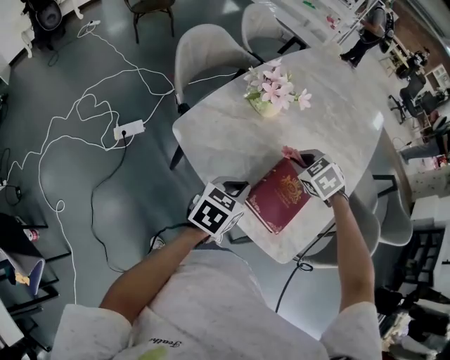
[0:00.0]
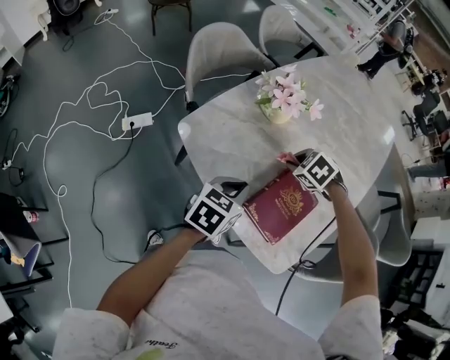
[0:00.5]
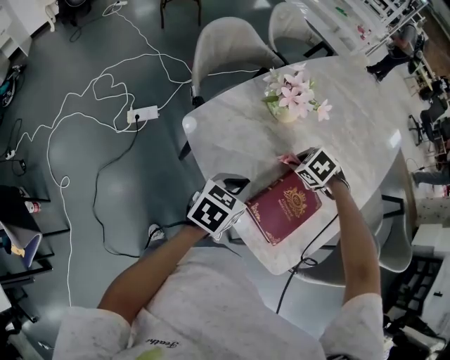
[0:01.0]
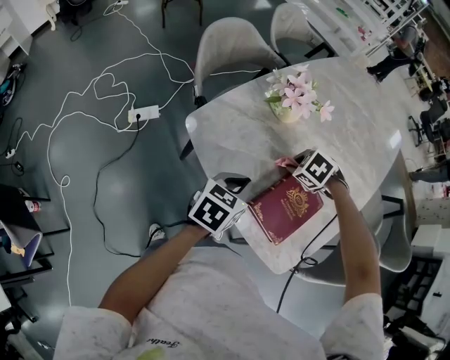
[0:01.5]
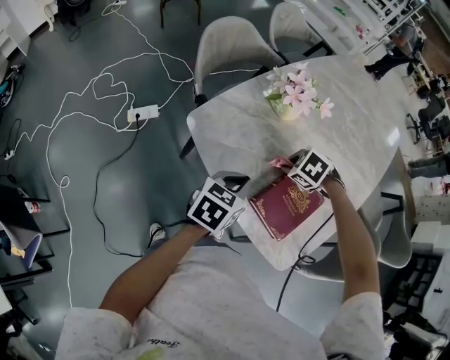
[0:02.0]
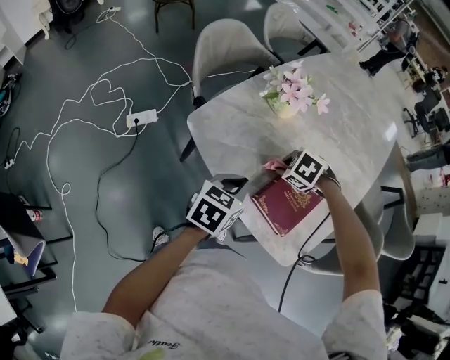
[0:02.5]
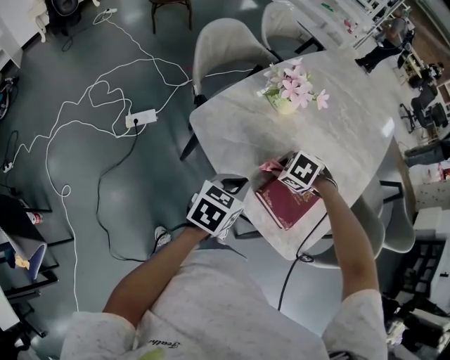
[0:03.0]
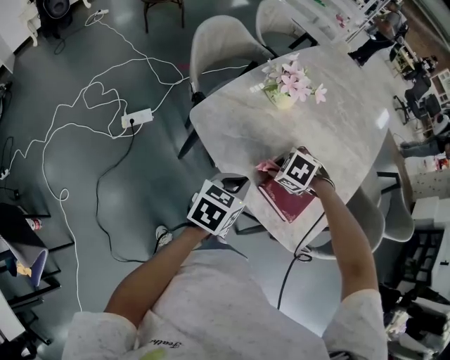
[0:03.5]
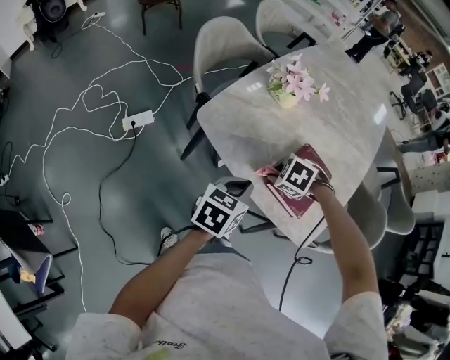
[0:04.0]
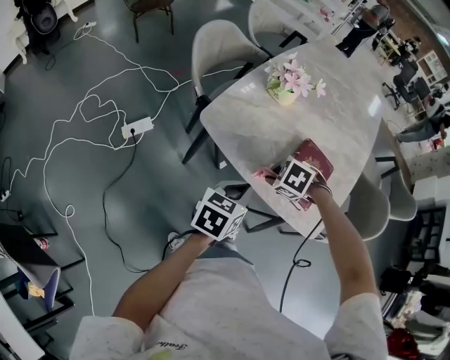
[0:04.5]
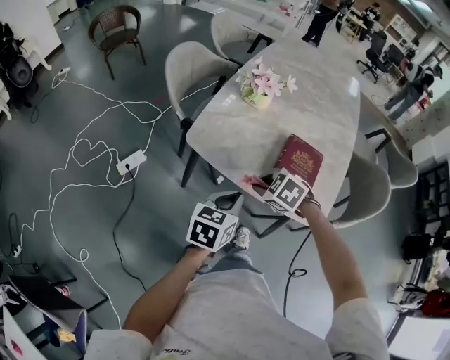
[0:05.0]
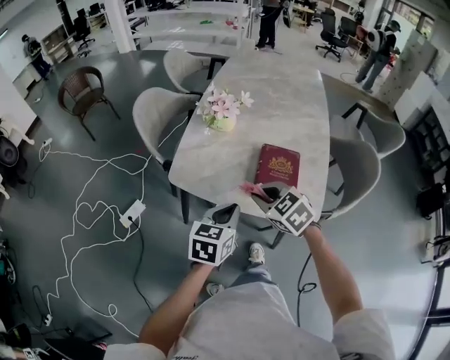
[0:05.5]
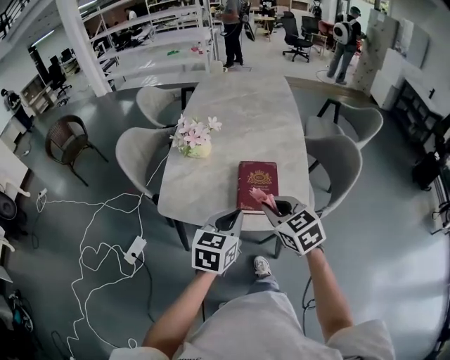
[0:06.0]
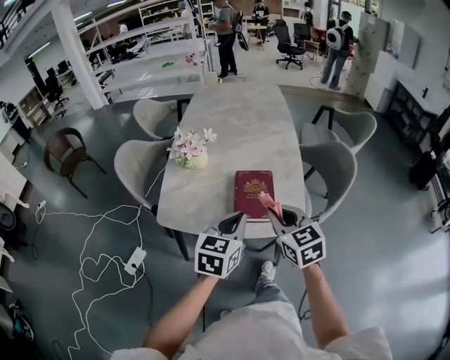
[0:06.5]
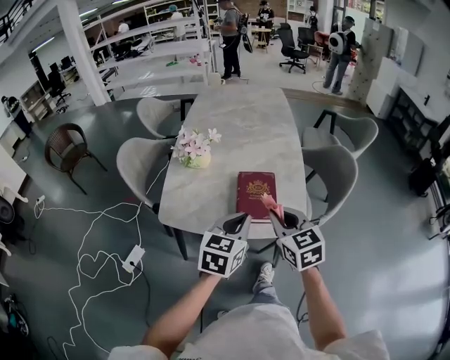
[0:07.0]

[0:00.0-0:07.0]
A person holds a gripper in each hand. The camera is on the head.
0.0 to 2.0 s: The right gripper goes about 10 cm downward, and swivels roughly 30 degrees.
2.0 to 3.5 s: The left gripper ends up approximately 5 cm from where it was, while the right gripper ends up some 10 cm from where it was.
3.5 to 5.0 s: The right gripper shifts by about 10 cm, and swivels about 30 degrees; the left gripper shifts by approximately 10 cm.
5.0 to 7.0 s: Both grippers travel together upward, roughly 15 cm. The left gripper changes its angle by approximately 30 degrees, while the right gripper angles its fingers upward, by about 40 degrees.

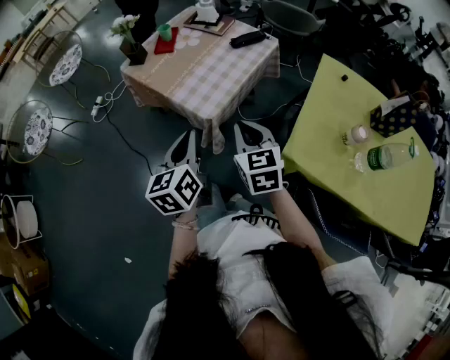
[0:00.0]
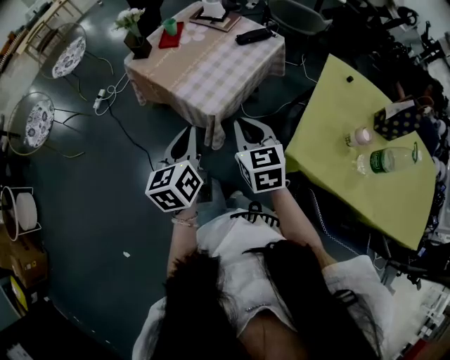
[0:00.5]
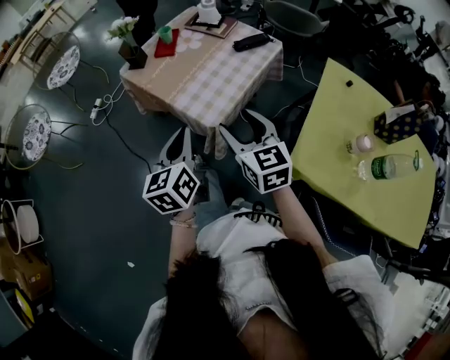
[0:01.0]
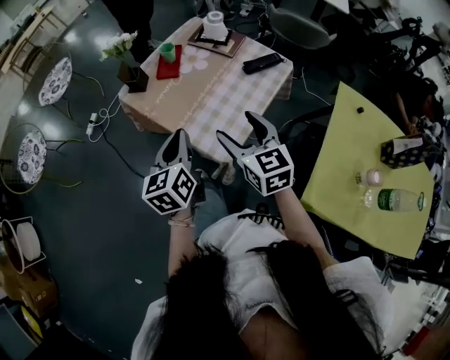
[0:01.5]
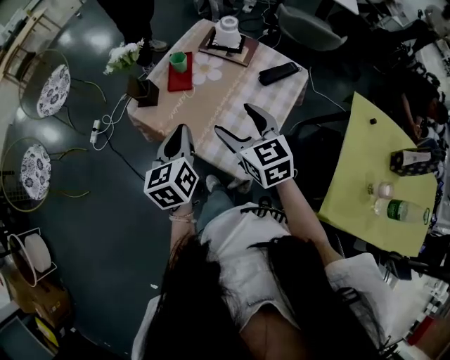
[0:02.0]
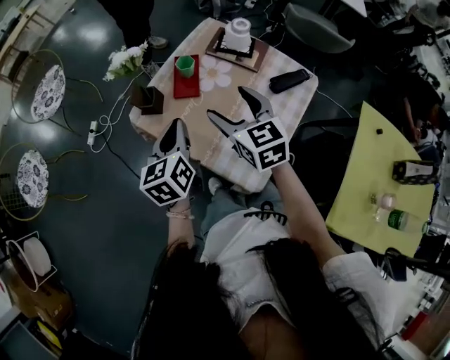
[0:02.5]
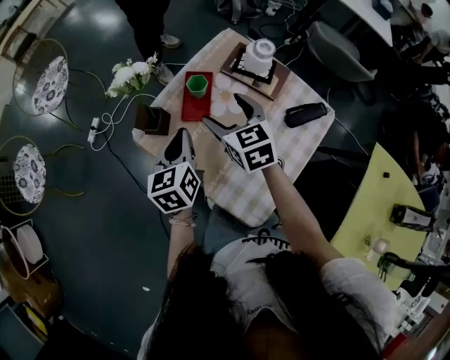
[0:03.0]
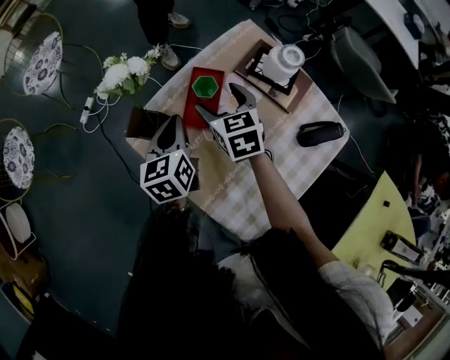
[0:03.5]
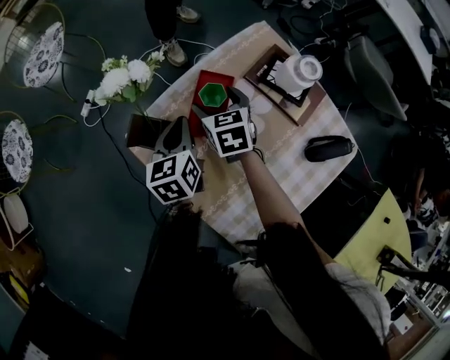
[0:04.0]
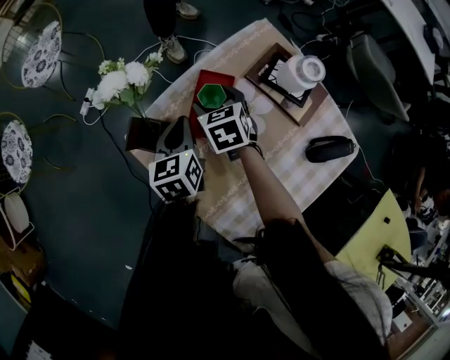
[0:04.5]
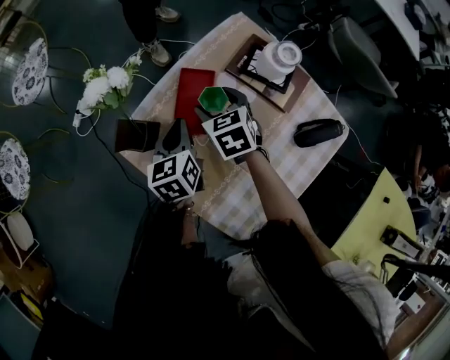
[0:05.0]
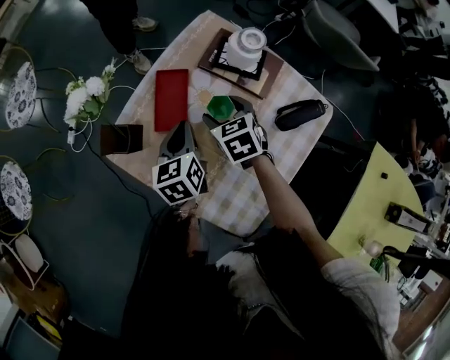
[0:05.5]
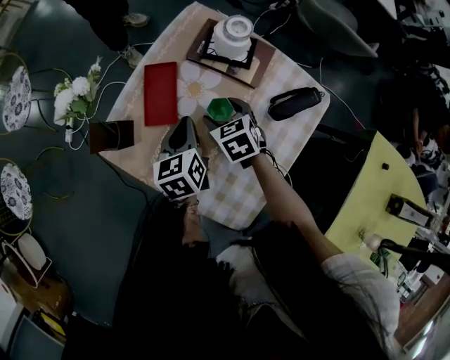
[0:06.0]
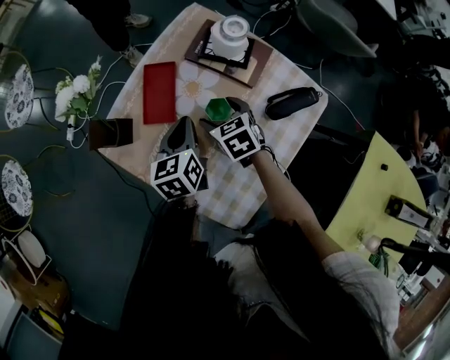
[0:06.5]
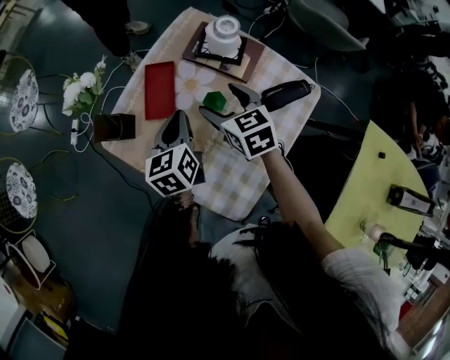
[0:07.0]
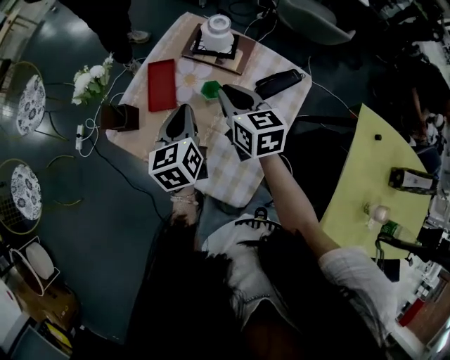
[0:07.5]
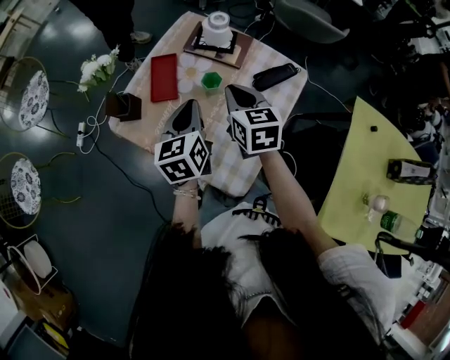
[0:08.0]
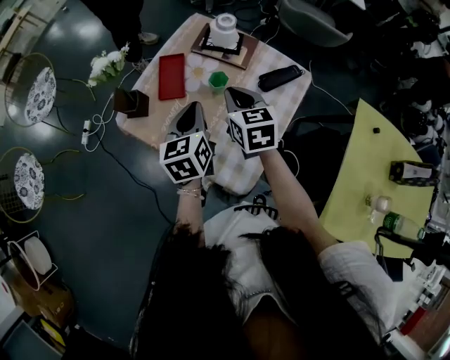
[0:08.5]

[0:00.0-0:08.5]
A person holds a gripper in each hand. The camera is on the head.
0.0 to 2.0 s: Both grippers move forward, roughly 30 cm. The right gripper opens up.
2.0 to 4.0 s: The two grippers go some 40 cm forward and downward. The right gripper swivels about 20 degrees.
4.0 to 6.5 s: Both grippers travel together to the right and backward, about 15 cm.
6.5 to 8.5 s: Both grippers move upward and backward, about 15 cm. The right gripper changes its angle by roughly 30 degrees, and closes its fingers.

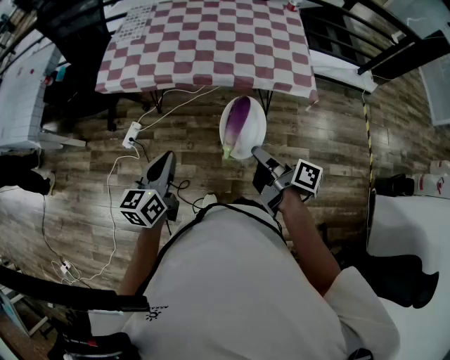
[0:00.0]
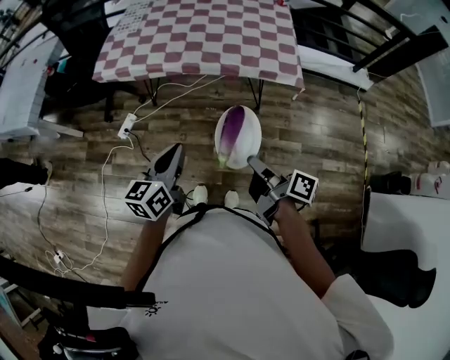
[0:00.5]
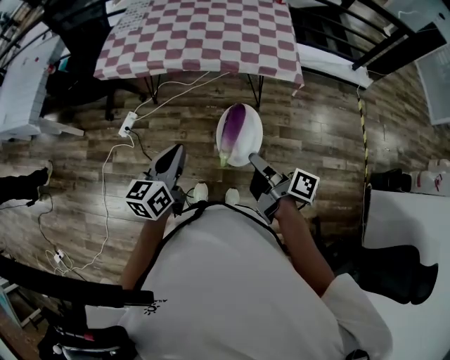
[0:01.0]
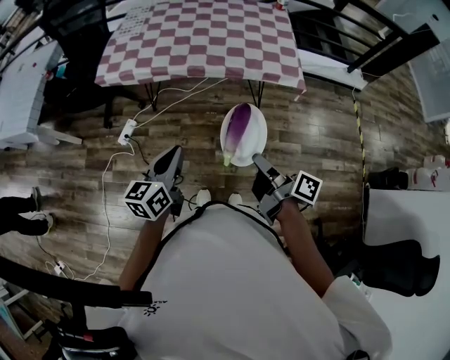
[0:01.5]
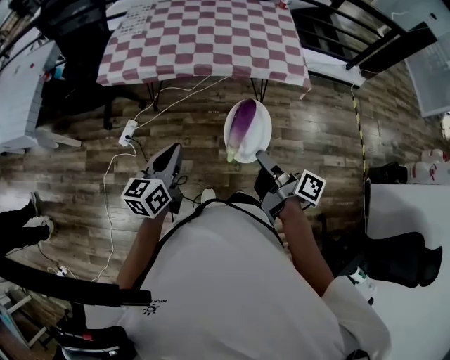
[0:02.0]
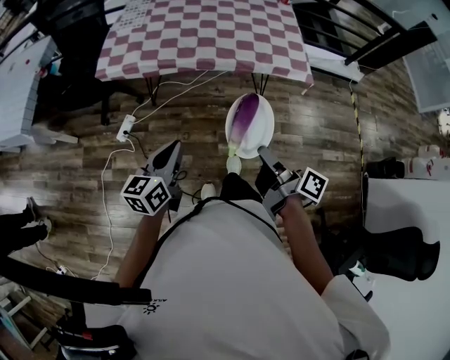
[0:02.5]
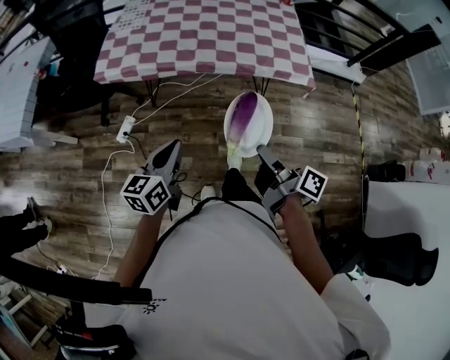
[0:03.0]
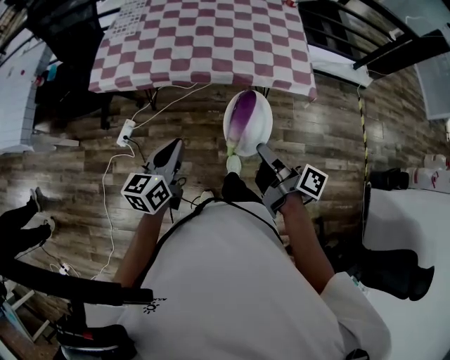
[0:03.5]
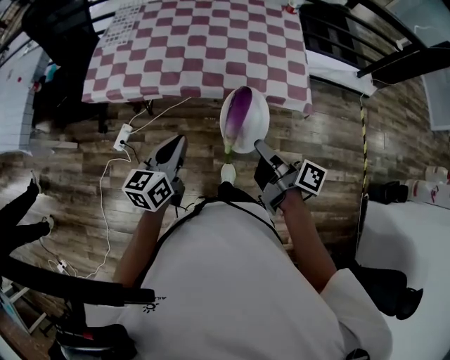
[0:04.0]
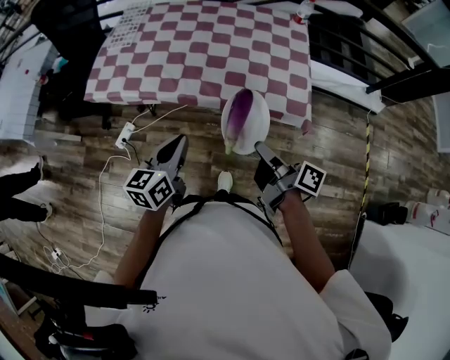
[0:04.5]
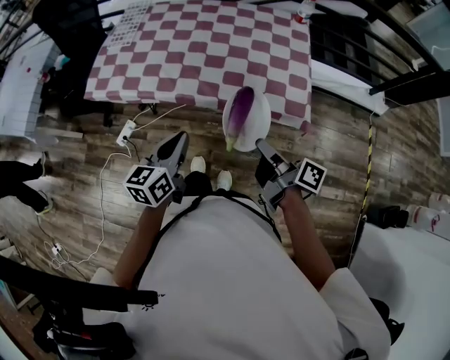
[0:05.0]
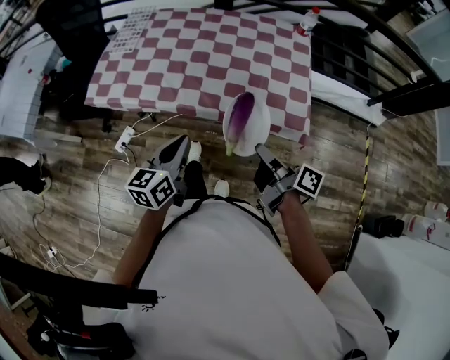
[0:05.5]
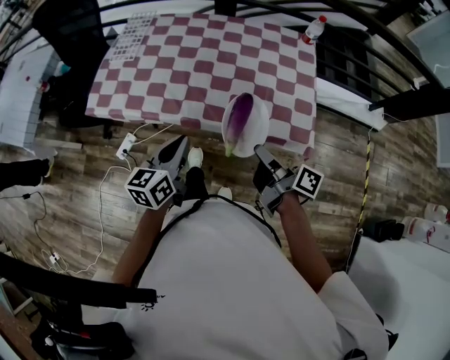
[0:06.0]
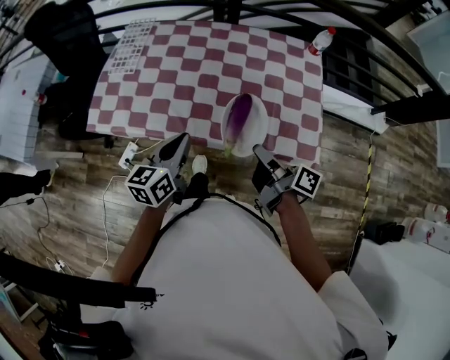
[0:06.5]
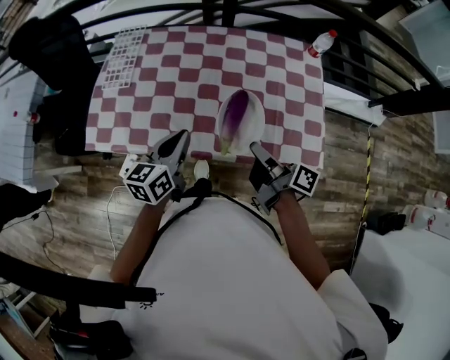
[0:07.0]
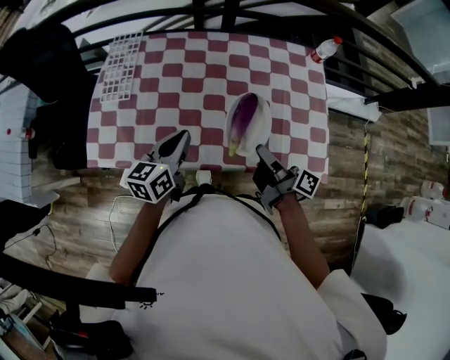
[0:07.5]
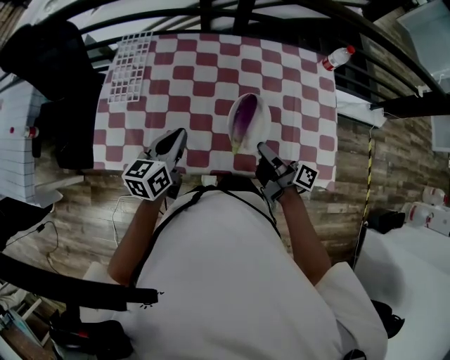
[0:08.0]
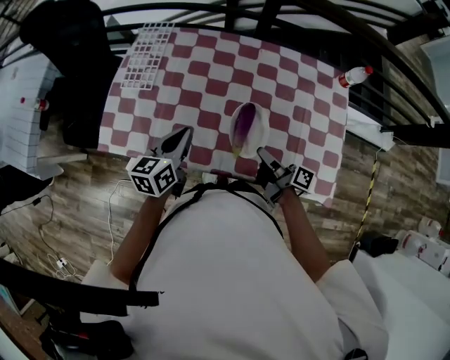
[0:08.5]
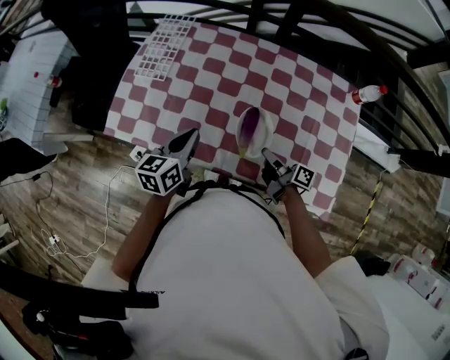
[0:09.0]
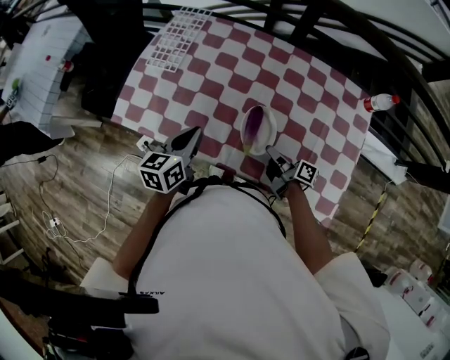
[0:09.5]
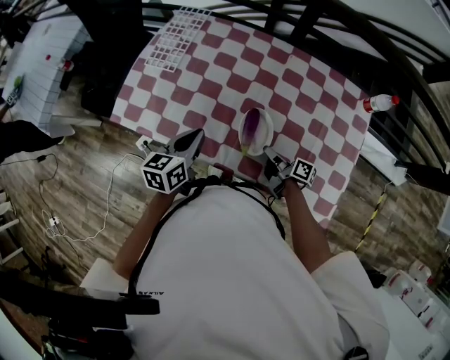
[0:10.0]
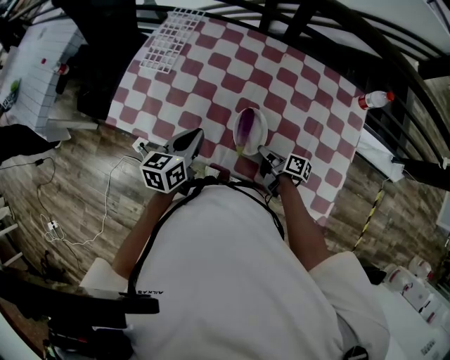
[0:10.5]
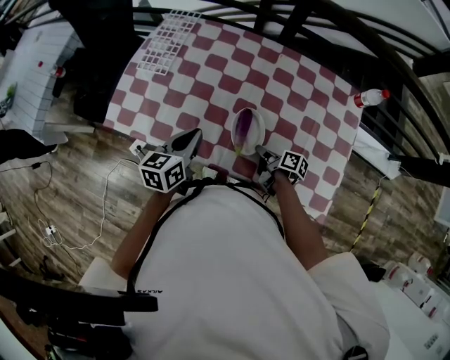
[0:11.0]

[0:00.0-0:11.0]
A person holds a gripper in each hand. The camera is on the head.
2.0 to 3.5 s: The left gripper ends up some 10 cm from where it was.
3.5 to 5.5 s: The left gripper ends up some 20 cm from where it was.
5.5 to 7.5 s: The left gripper shifts by approximately 30 cm.

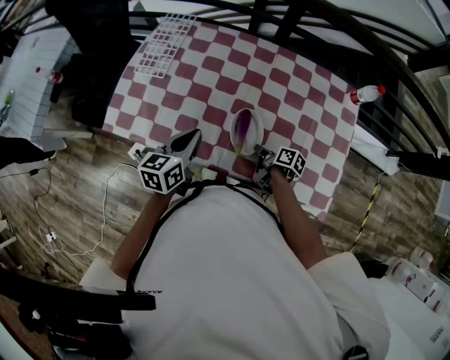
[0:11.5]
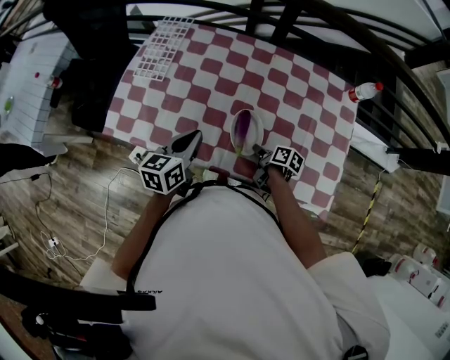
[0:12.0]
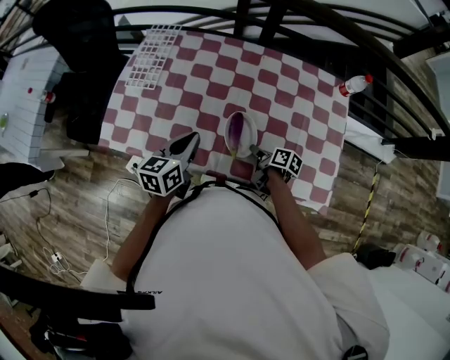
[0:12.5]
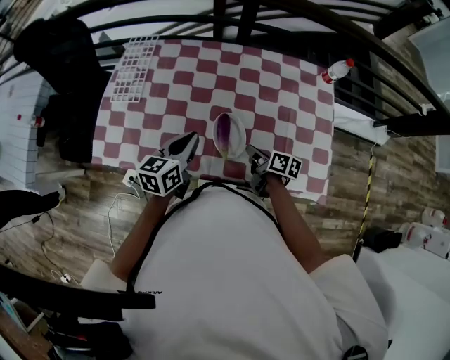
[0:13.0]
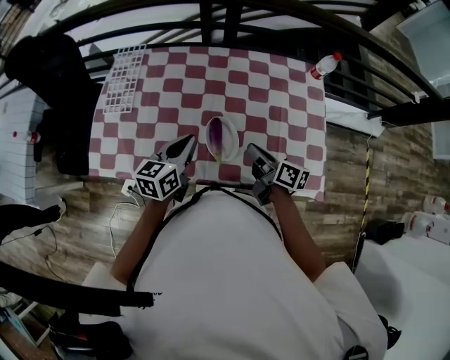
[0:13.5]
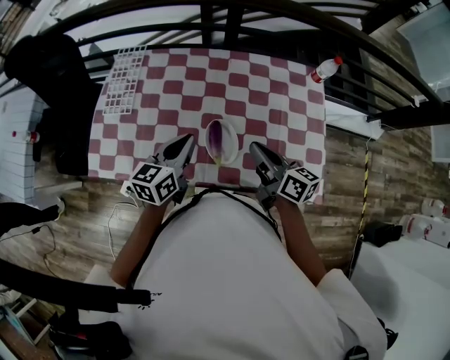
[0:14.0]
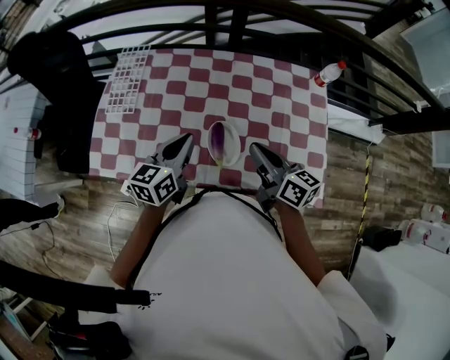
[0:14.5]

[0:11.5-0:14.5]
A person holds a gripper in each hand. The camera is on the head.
11.5 to 13.0 s: The left gripper ends up roughly 5 cm from where it was.
13.0 to 14.5 s: The left gripper ends up approximately 5 cm from where it was.
